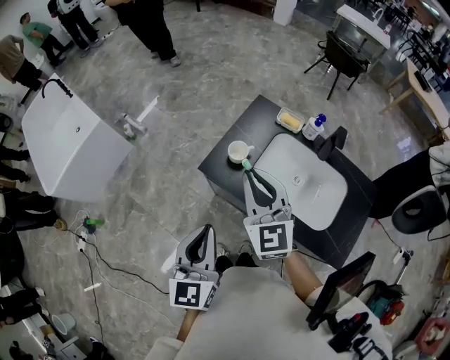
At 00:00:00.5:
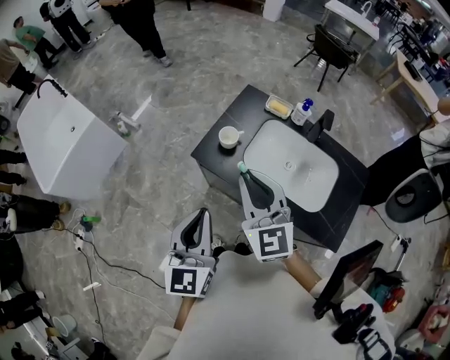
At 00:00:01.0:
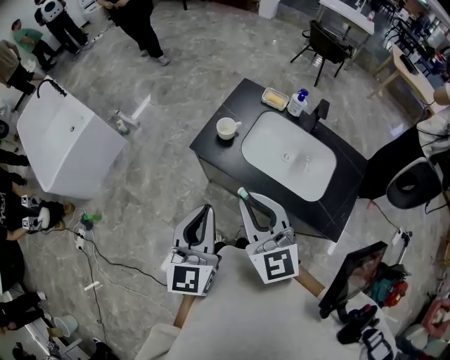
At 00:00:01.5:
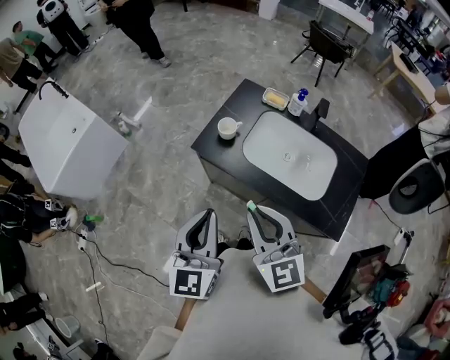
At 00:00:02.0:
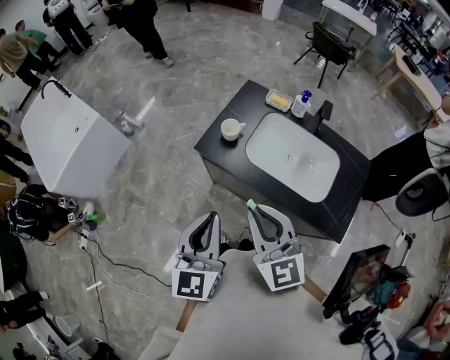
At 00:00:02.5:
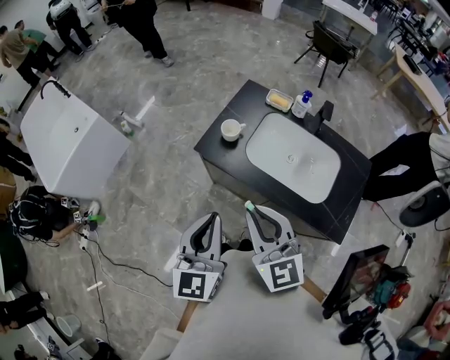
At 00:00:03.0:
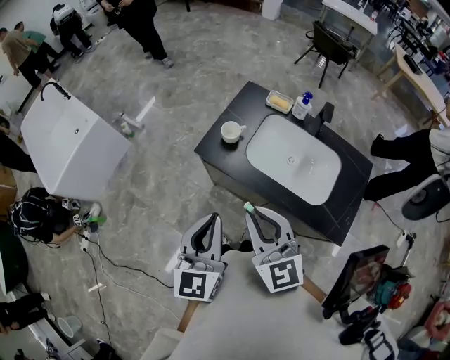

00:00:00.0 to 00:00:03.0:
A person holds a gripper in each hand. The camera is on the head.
00:00:00.0 to 00:00:01.5: The right gripper travels backward by approximately 20 cm; the left gripper shifts about 5 cm backward.
00:00:01.5 to 00:00:03.0: The right gripper swivels some 30 degrees.

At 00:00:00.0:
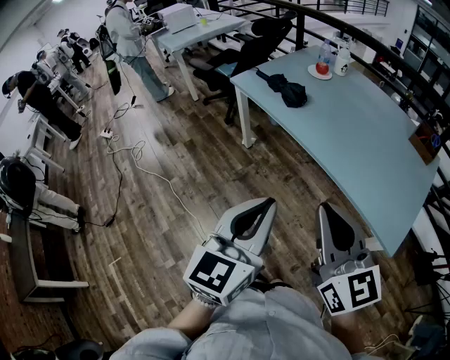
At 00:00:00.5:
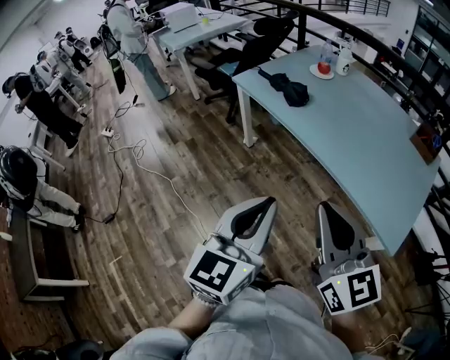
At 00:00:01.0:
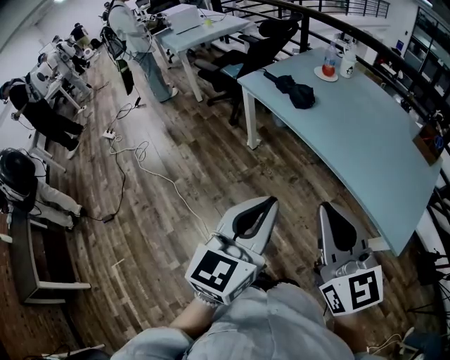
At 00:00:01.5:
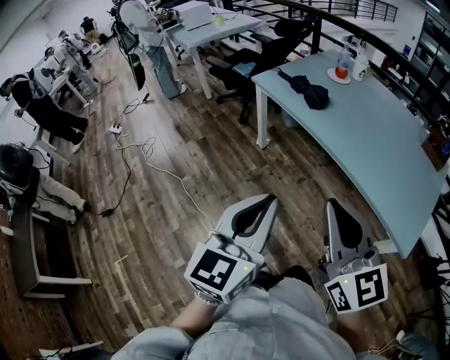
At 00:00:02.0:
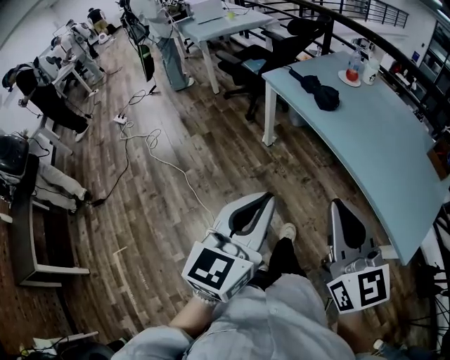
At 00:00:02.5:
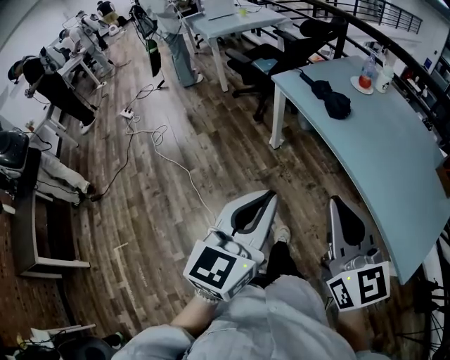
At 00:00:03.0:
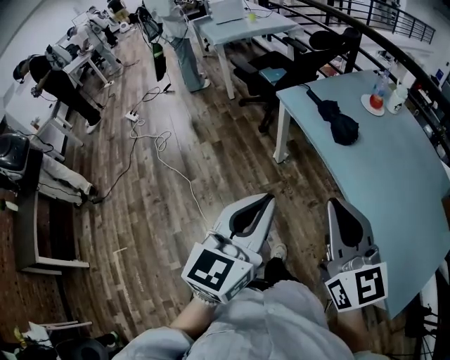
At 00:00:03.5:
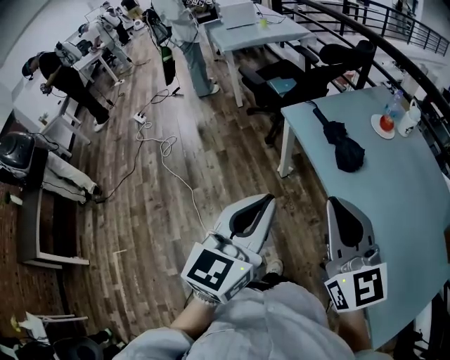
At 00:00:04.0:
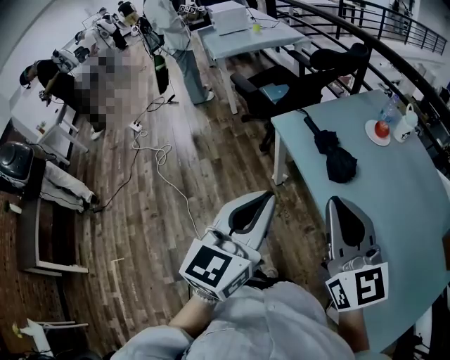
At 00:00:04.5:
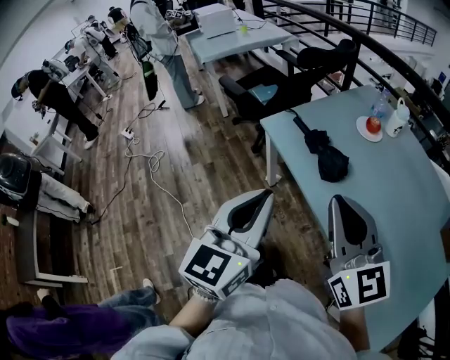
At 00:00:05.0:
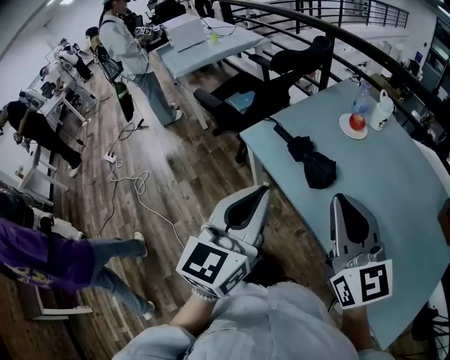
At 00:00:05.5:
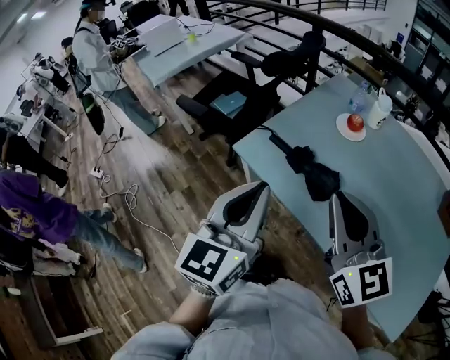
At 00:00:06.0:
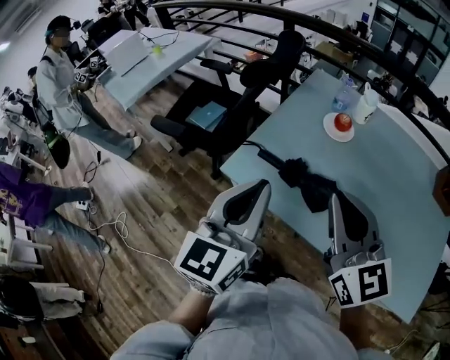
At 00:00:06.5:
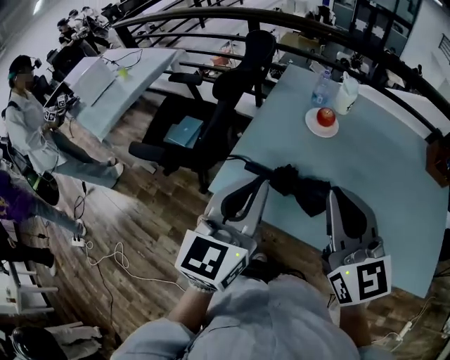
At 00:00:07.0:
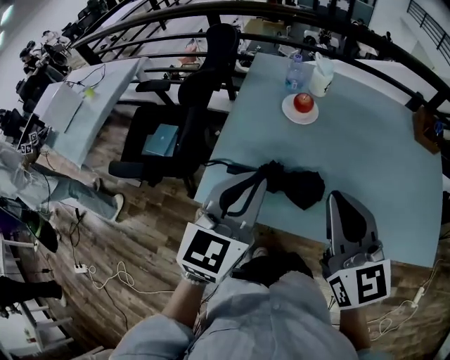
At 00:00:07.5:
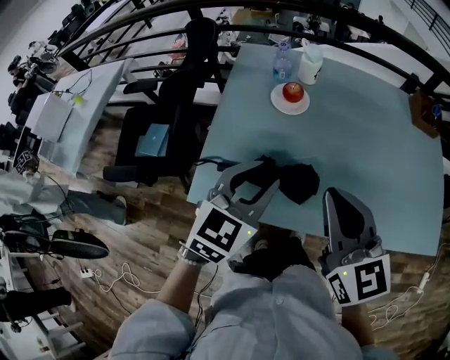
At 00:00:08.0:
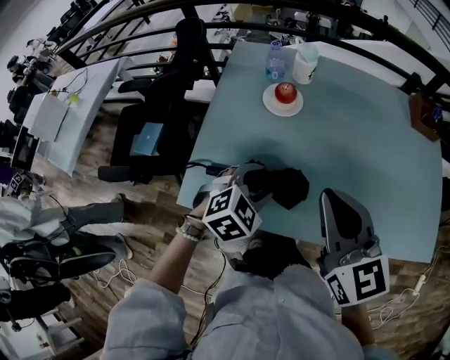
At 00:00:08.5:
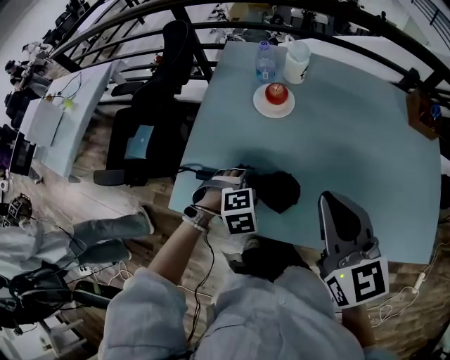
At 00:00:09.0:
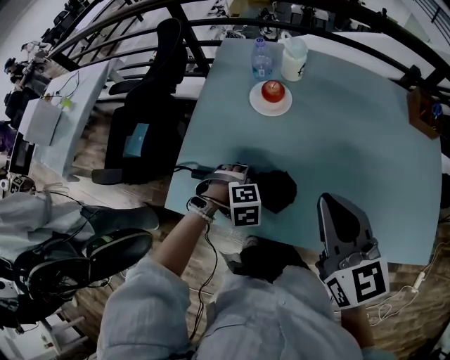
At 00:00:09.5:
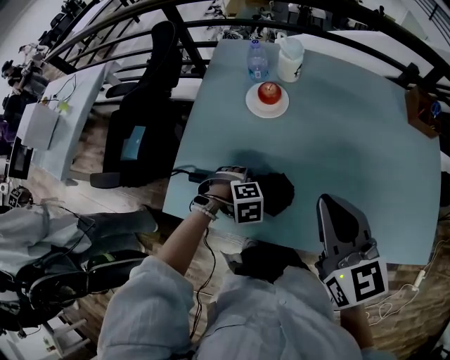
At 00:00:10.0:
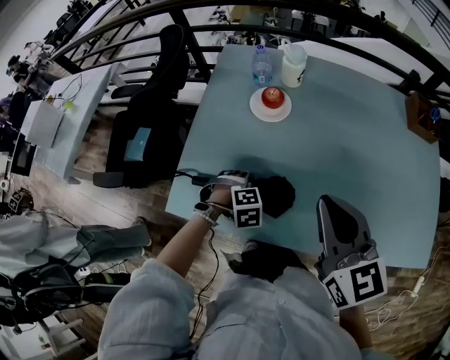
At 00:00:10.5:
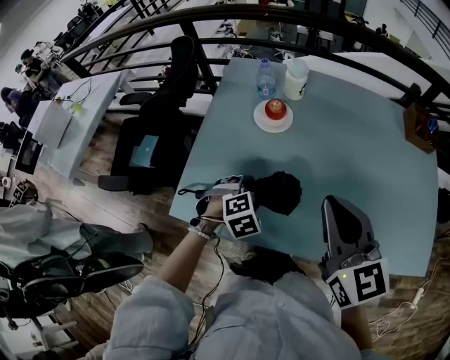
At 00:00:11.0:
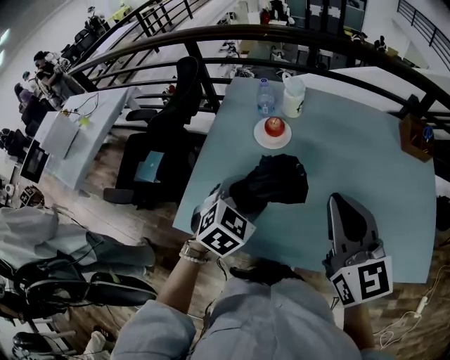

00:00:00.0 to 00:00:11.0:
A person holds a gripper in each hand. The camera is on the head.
00:00:00.0 to 00:00:02.0: The grippers both shift to the left by roughly 10 cm.
00:00:02.0 to 00:00:03.5: The grippers both shift forward by about 25 cm.
00:00:03.5 to 00:00:05.5: Both grippers travel together forward, about 20 cm. The right gripper turns by some 20 degrees.
00:00:05.5 to 00:00:07.5: The right gripper shifts by roughly 10 cm, and rotates about 30 degrees, while the left gripper ends up approximately 25 cm from where it was, and turns by approximately 50 degrees.
00:00:07.5 to 00:00:09.0: The left gripper goes about 25 cm downward, points its fingers about 60 degrees further downward, and opens. Meanwhile the right gripper moves roughly 10 cm.
00:00:09.0 to 00:00:11.0: The right gripper goes about 5 cm upward. The left gripper is displaced upward by some 20 cm, and tips its fingers upward by approximately 40 degrees.

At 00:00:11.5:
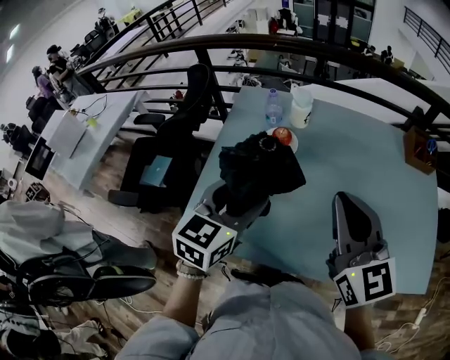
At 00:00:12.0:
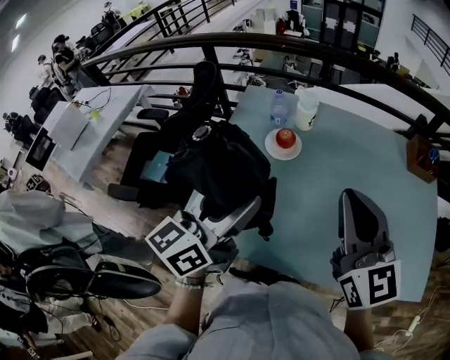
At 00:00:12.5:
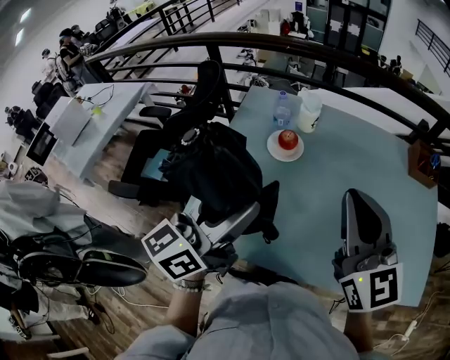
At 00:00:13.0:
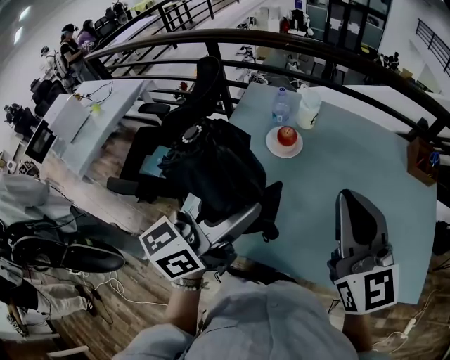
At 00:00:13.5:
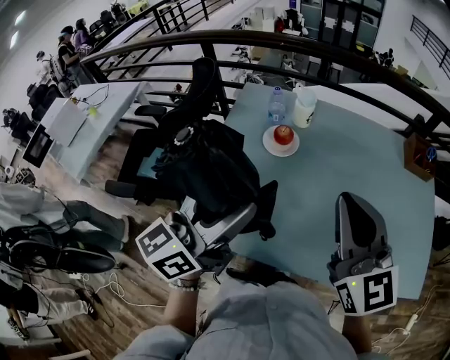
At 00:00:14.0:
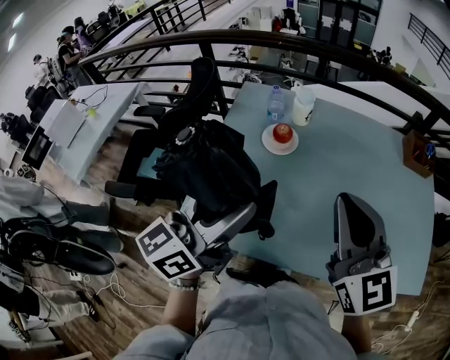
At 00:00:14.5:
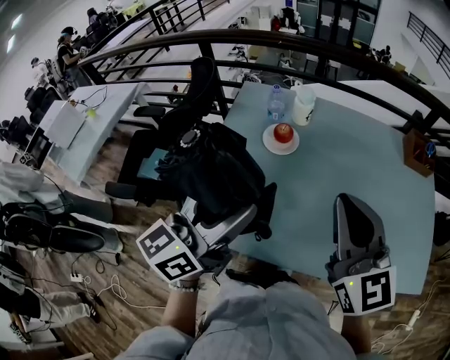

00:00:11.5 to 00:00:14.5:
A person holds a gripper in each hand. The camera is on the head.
00:00:11.5 to 00:00:13.0: The left gripper is displaced upward by approximately 10 cm, and swivels roughly 40 degrees.
00:00:13.0 to 00:00:14.5: The grippers move only a little.

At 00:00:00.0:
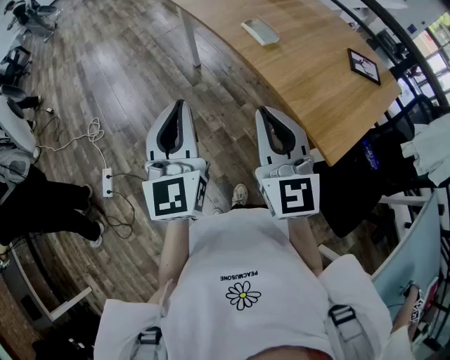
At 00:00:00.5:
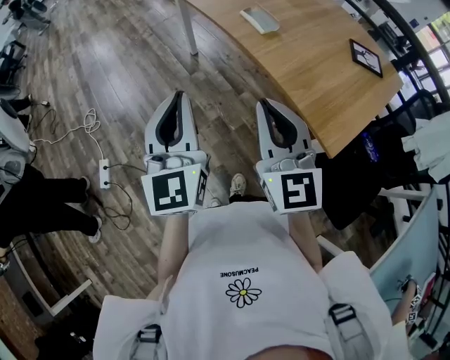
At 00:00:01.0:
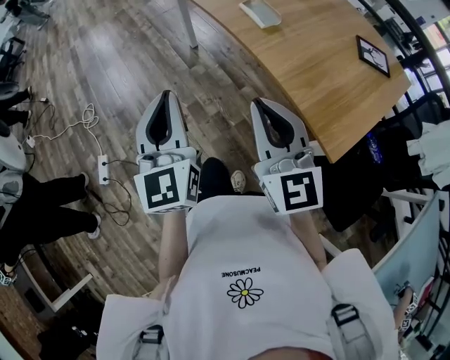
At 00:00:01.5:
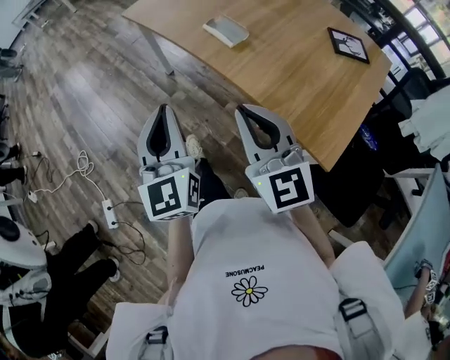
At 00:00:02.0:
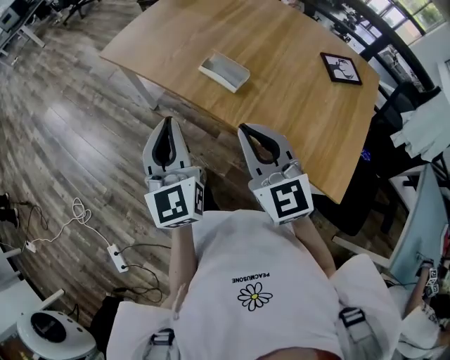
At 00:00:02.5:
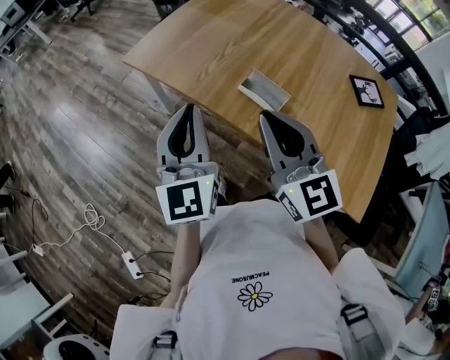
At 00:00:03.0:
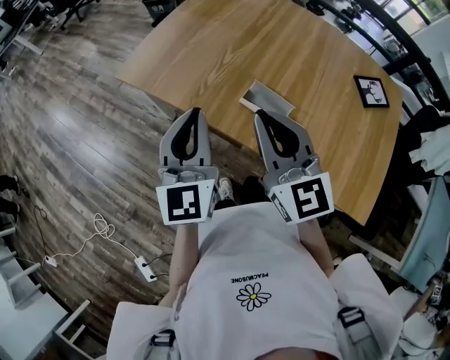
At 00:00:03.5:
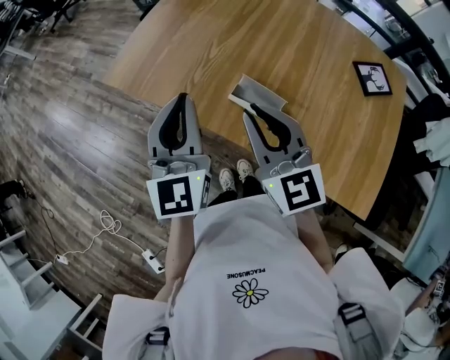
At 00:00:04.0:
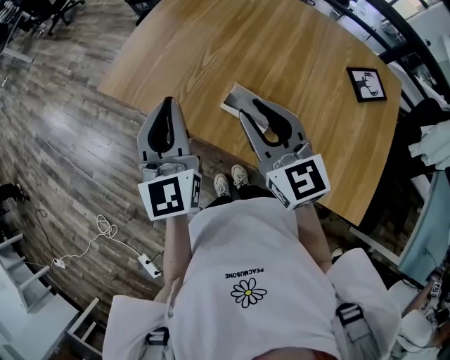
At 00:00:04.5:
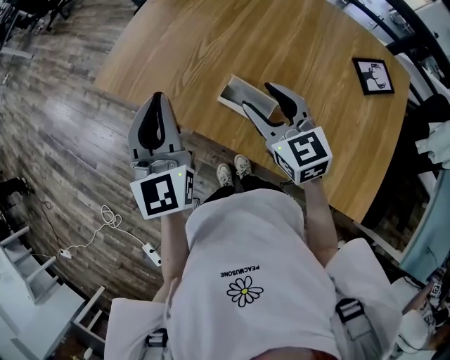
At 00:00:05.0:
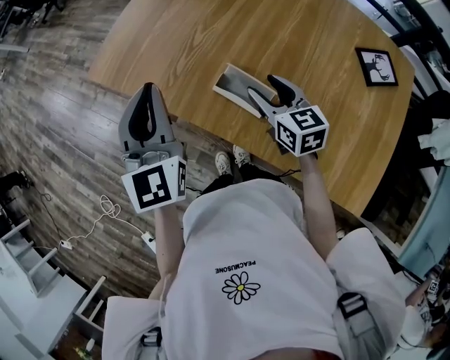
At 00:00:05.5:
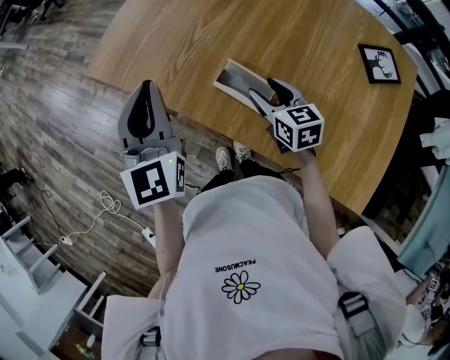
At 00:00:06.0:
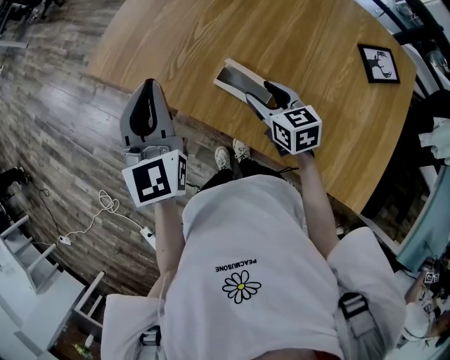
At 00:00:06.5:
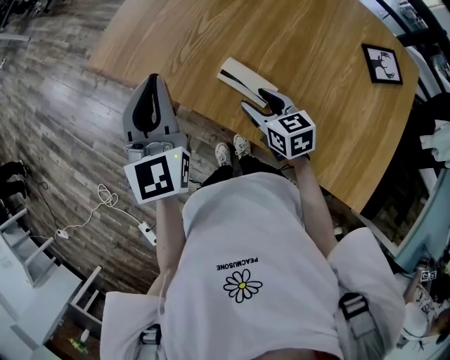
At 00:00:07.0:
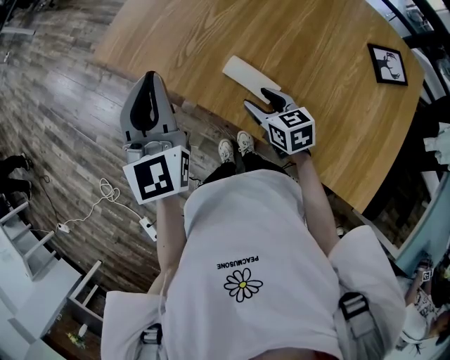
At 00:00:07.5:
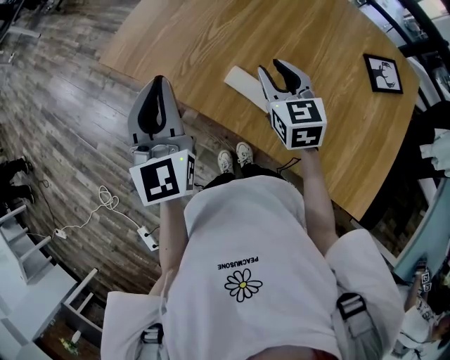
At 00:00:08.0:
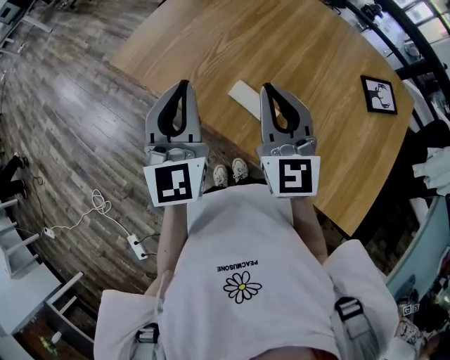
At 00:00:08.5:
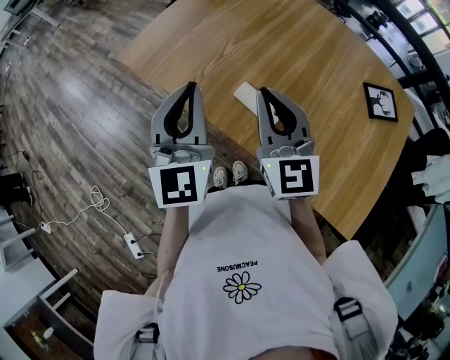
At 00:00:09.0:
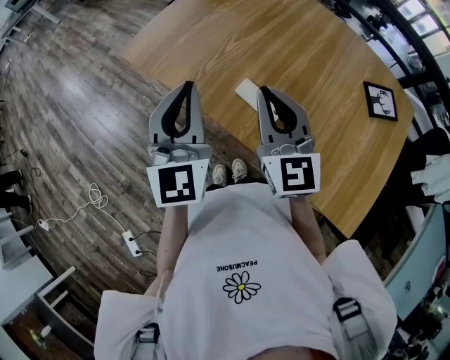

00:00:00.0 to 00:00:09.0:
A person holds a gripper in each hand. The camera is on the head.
00:00:00.0 to 00:00:02.0: The two grippers go some 30 cm forward.
00:00:02.0 to 00:00:04.5: The two grippers go about 25 cm forward. The right gripper opens its fingers.
00:00:04.5 to 00:00:07.0: The right gripper heads downward, covering roughly 15 cm, and turns by roughly 30 degrees.
00:00:07.0 to 00:00:09.0: The right gripper goes approximately 25 cm upward, tilts its fingers roughly 30 degrees upward, and closes. Meanwhile the left gripper changes place by about 5 cm.
